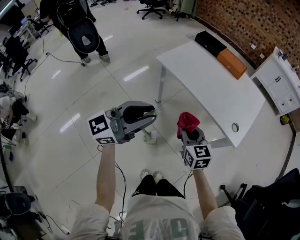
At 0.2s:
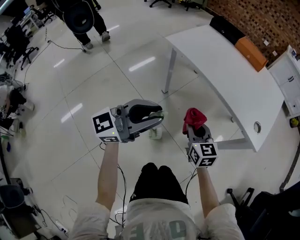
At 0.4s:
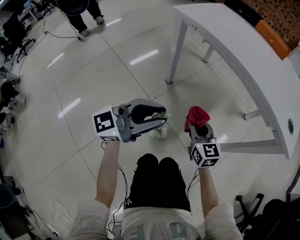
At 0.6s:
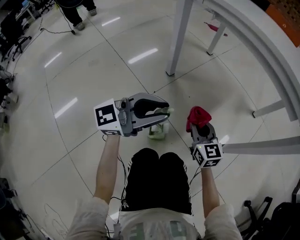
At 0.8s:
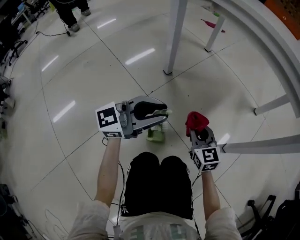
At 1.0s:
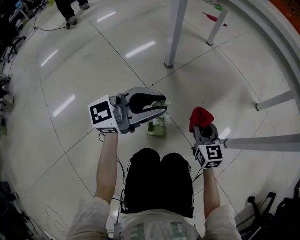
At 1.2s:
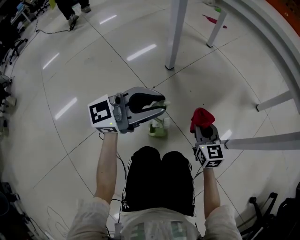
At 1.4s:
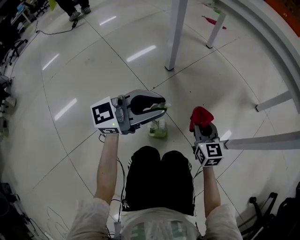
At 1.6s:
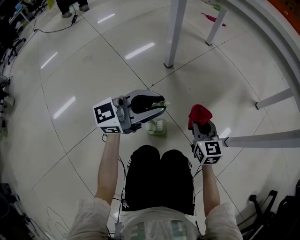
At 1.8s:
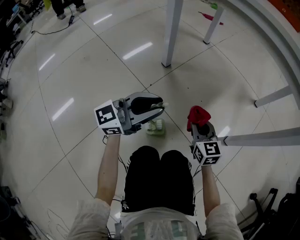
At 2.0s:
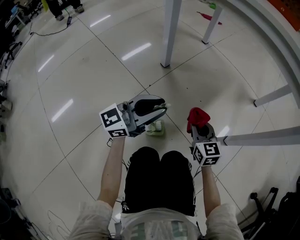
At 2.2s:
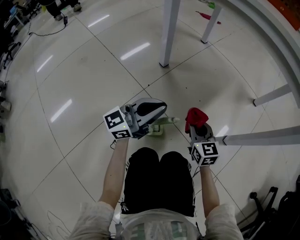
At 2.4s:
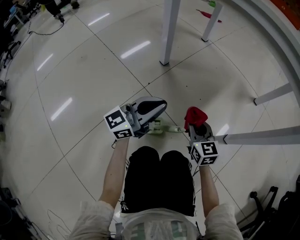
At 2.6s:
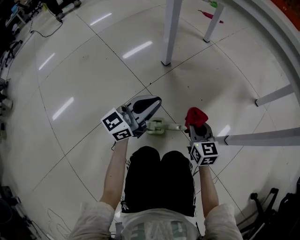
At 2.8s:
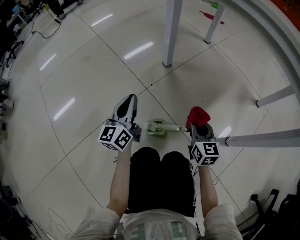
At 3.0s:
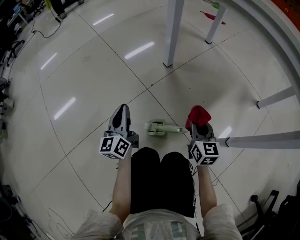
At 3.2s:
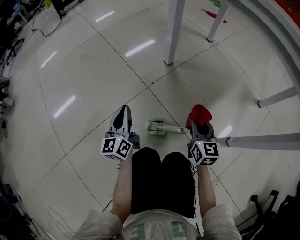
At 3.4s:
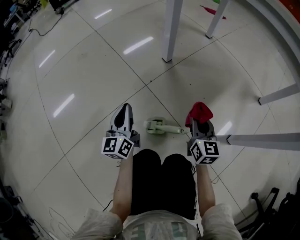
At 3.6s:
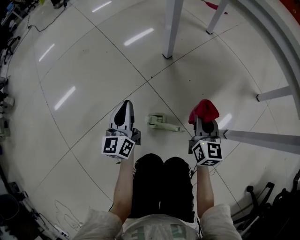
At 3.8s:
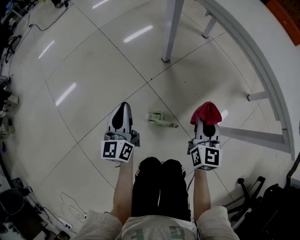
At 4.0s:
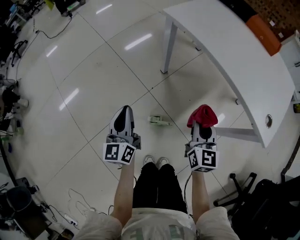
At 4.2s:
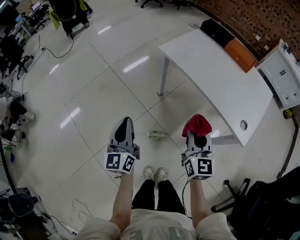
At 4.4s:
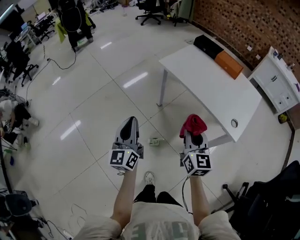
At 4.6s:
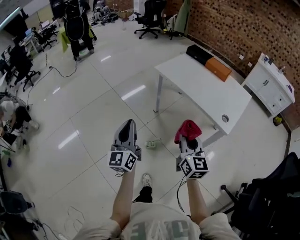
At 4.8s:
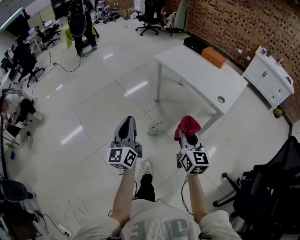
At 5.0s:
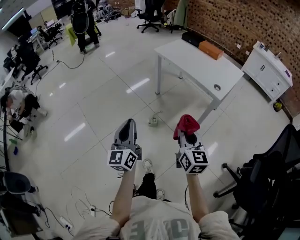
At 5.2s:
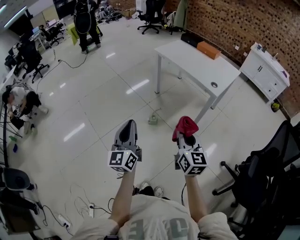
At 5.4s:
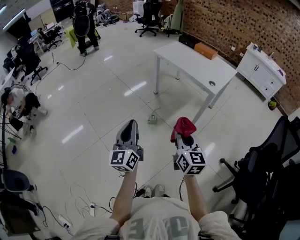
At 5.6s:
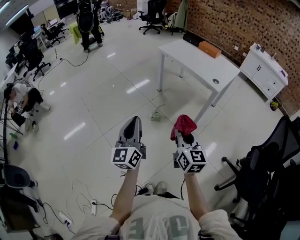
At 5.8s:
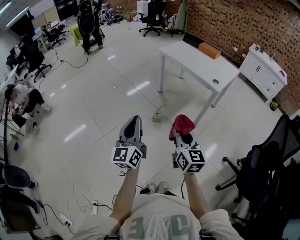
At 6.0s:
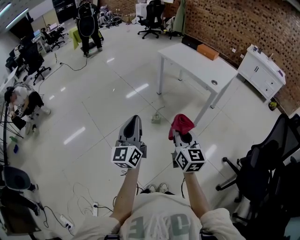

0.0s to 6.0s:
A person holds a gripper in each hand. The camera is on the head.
0.0s to 1.6s: The two grippers go some 60 cm downward.
1.6s to 3.0s: The left gripper shifts by about 20 cm, and swivels about 70 degrees.
3.0s to 4.4s: The grippers both shift upward by about 70 cm.
4.4s to 6.0s: The two grippers travel together, backward, roughly 50 cm.

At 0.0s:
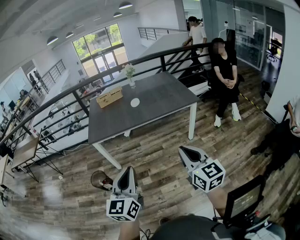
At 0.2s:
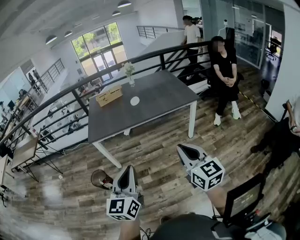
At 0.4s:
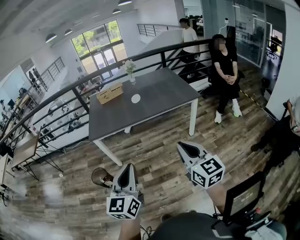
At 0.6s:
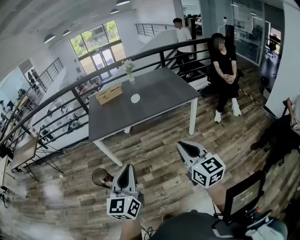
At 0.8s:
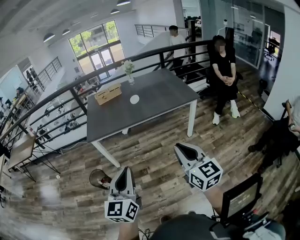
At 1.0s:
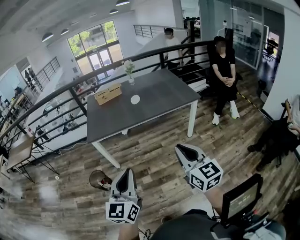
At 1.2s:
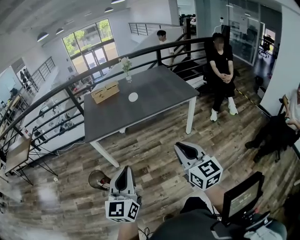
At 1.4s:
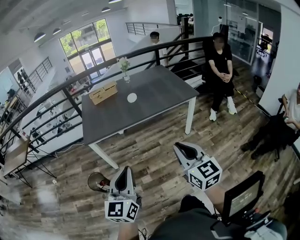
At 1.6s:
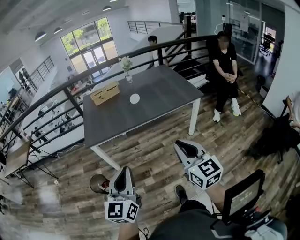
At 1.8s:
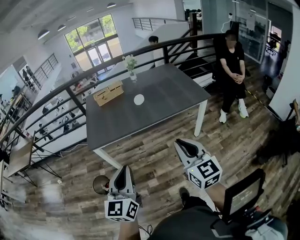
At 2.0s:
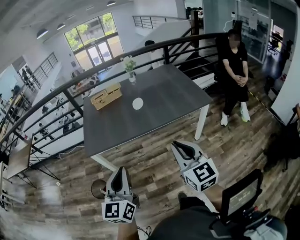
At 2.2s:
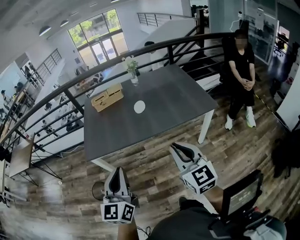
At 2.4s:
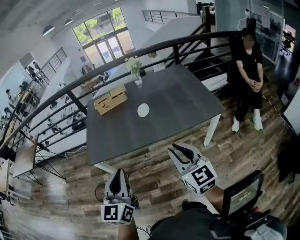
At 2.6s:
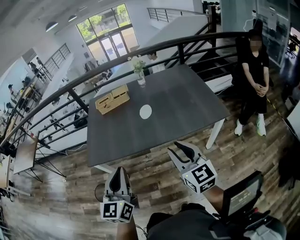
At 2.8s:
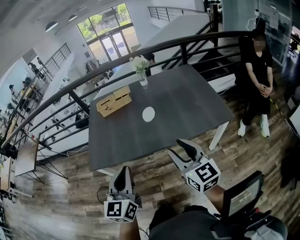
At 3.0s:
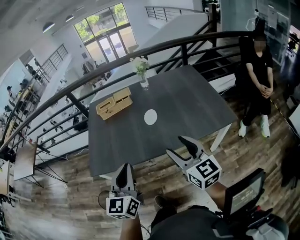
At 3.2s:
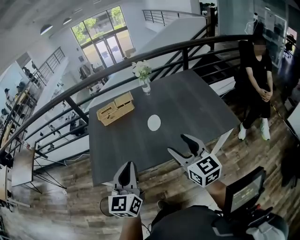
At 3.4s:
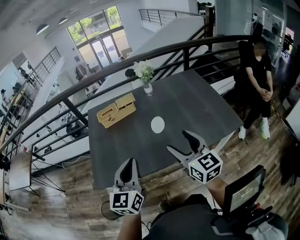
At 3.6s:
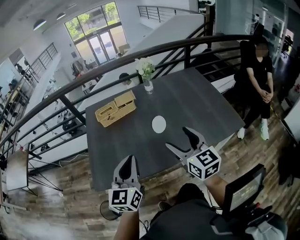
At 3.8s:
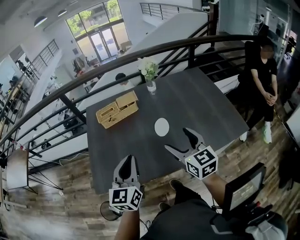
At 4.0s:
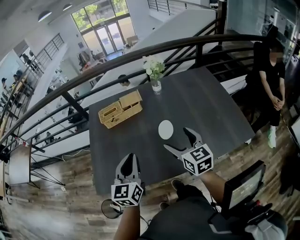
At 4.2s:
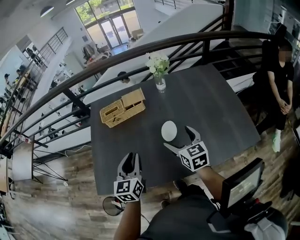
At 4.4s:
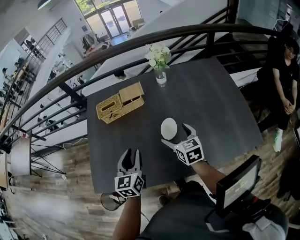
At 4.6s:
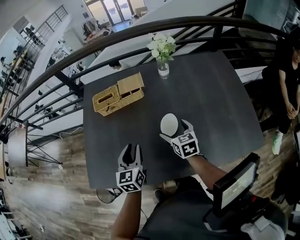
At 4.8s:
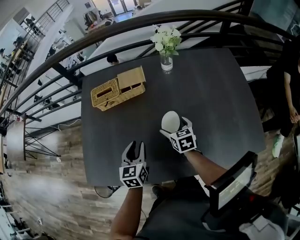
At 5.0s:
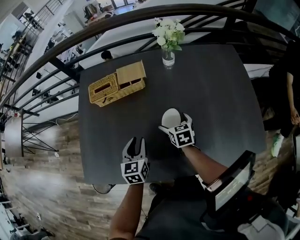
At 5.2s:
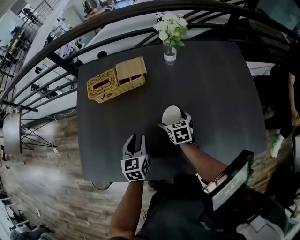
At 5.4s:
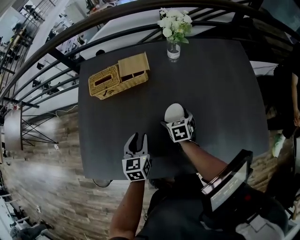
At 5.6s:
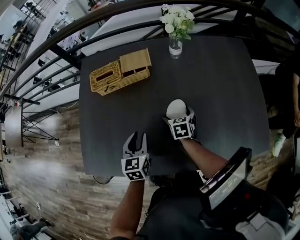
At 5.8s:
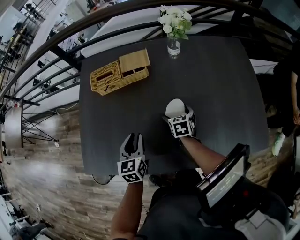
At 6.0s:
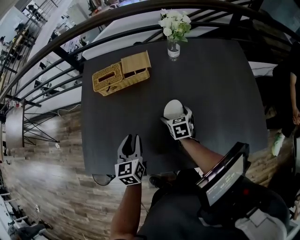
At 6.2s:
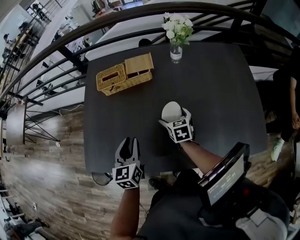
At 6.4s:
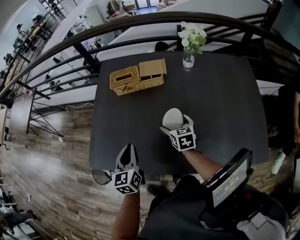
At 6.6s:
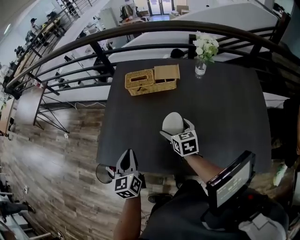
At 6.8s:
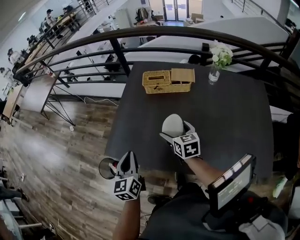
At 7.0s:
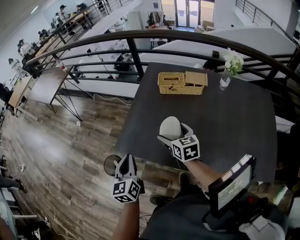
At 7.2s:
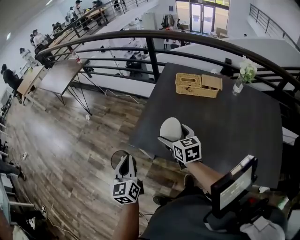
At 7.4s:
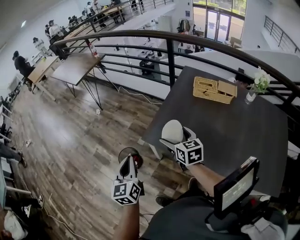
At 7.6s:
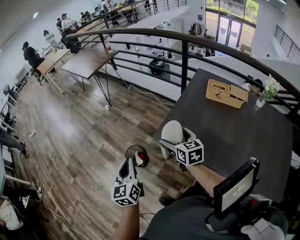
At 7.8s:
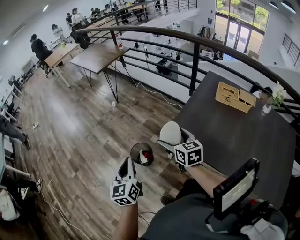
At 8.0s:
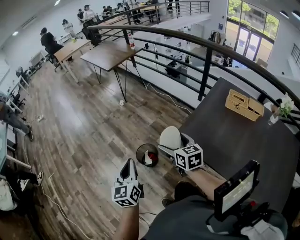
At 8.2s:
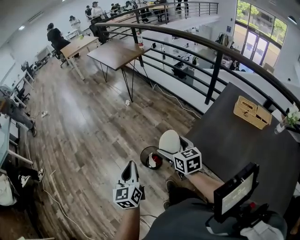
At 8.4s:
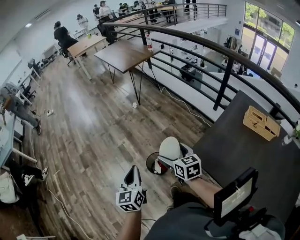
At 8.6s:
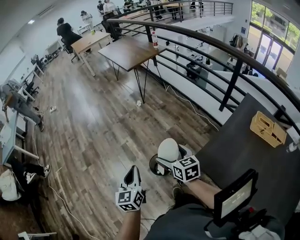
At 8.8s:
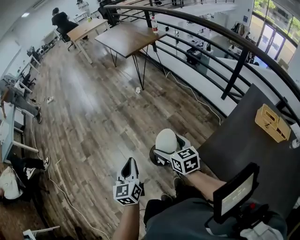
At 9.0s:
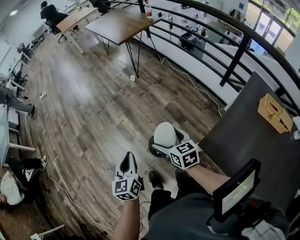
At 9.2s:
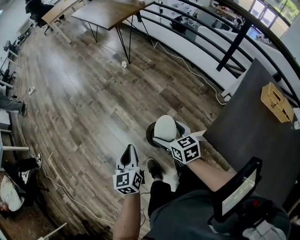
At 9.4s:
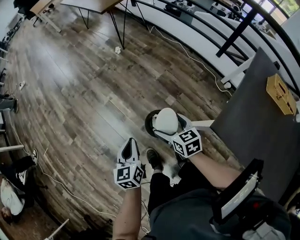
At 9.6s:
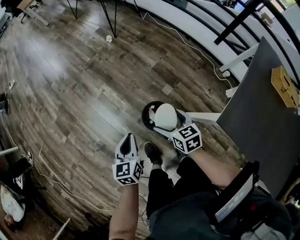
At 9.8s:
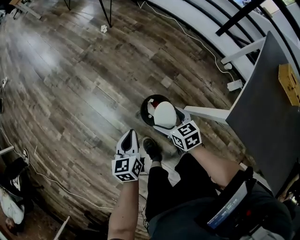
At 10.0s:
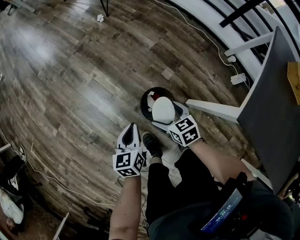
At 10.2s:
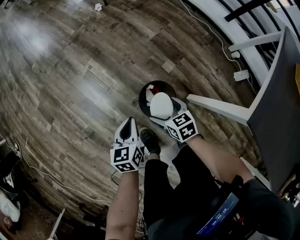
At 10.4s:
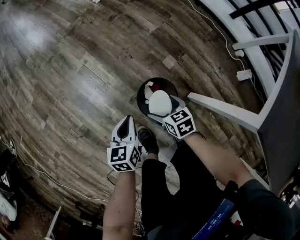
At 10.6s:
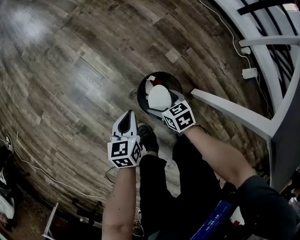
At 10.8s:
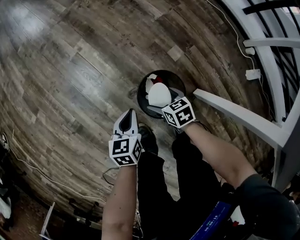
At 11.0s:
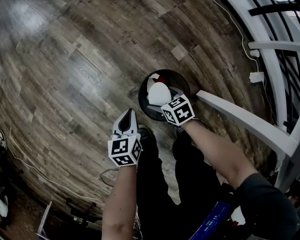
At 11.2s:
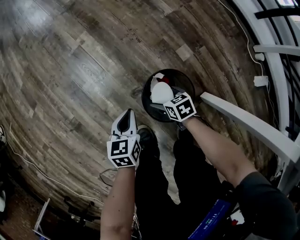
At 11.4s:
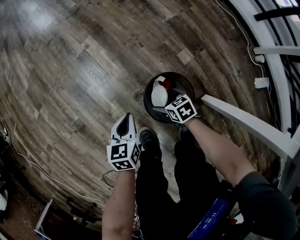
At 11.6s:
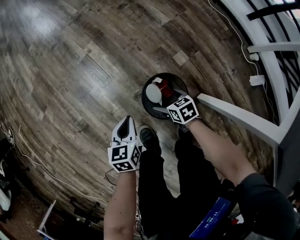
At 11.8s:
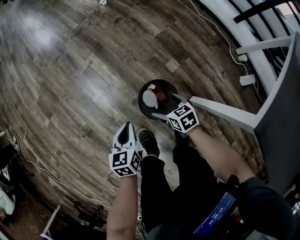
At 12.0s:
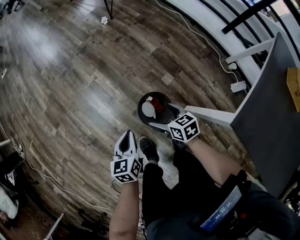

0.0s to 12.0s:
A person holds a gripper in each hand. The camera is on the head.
0.0s to 1.6s: The two grippers go approximately 15 cm forward and to the left.
1.6s to 3.0s: Both grippers move forward, some 35 cm. The right gripper opens.
3.0s to 4.4s: Both grippers travel together forward and downward, about 35 cm. The left gripper opens its fingers. Meanwhile the right gripper swivels about 30 degrees, and opens up.
4.4s to 6.0s: The right gripper travels downward and forward by approximately 15 cm, while the left gripper moves downward, about 10 cm.
6.0s to 7.6s: The pair of grippers is taken approximately 50 cm. The right gripper changes its angle by some 50 degrees. The left gripper changes its angle by roughly 50 degrees, and closes up.
7.6s to 9.0s: The left gripper is displaced forward, to the left and downward by about 25 cm. The right gripper moves to the left, forward and downward, about 35 cm, and changes its angle by about 30 degrees.
9.0s to 10.4s: The grippers both shift downward by approximately 50 cm. The right gripper rotates about 20 degrees, while the left gripper swivels approximately 30 degrees.
10.4s to 12.0s: The grippers both shift upward by approximately 10 cm.

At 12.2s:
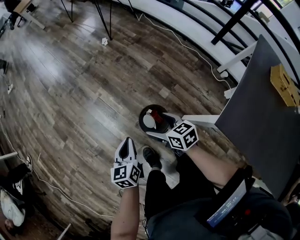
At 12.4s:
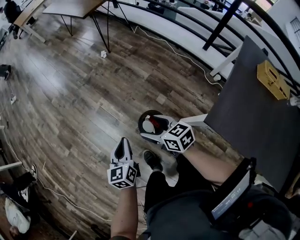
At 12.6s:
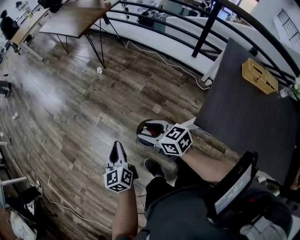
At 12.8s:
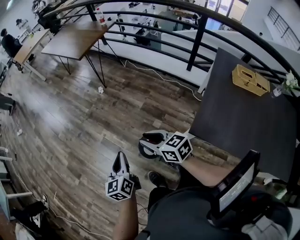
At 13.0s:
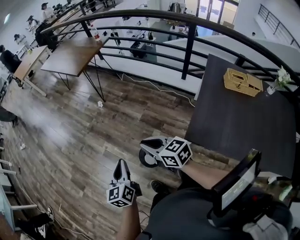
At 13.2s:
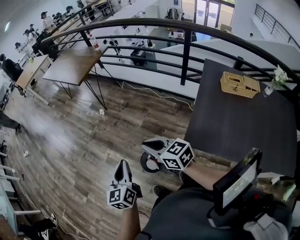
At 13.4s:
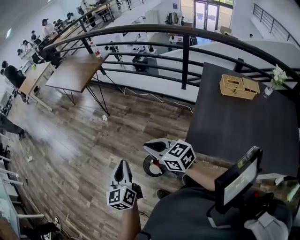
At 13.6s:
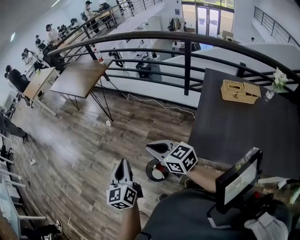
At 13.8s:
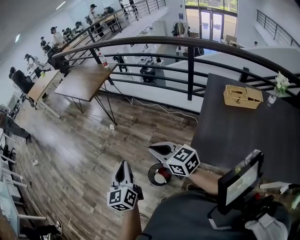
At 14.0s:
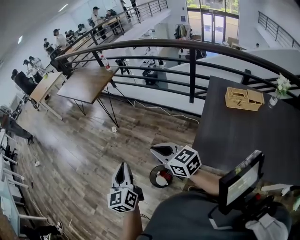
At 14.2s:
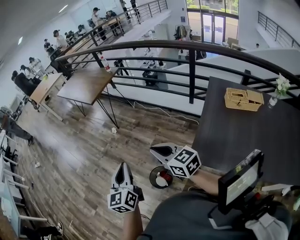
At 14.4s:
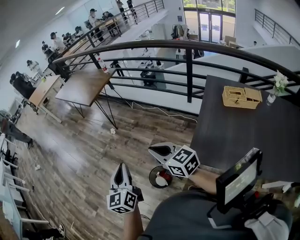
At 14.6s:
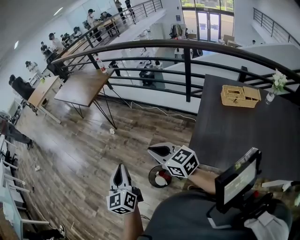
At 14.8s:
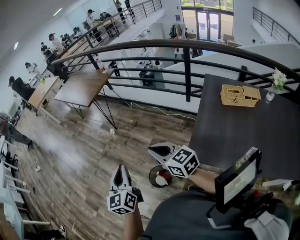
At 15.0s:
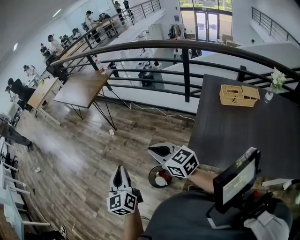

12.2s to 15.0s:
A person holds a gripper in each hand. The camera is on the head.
12.2s to 13.6s: The two grippers go about 35 cm upward. The left gripper swivels about 30 degrees, while the right gripper changes its angle by roughly 30 degrees, and closes.
13.6s to 15.0s: The grippers make only small movements.

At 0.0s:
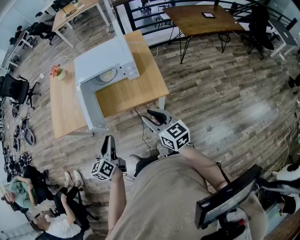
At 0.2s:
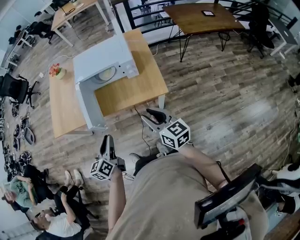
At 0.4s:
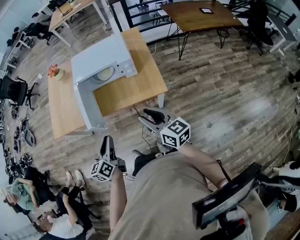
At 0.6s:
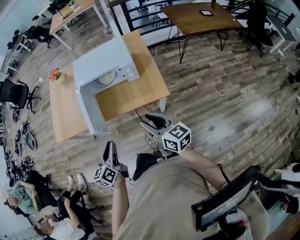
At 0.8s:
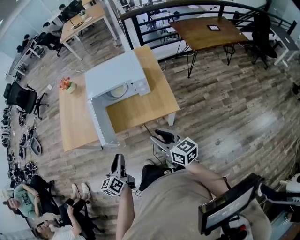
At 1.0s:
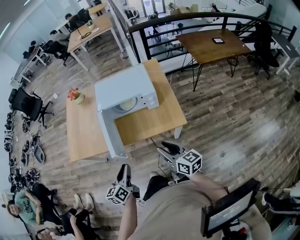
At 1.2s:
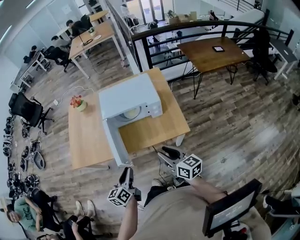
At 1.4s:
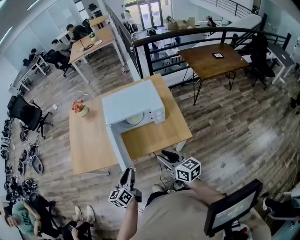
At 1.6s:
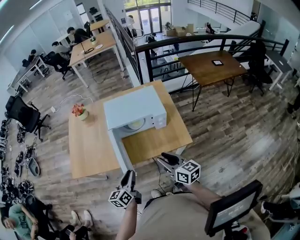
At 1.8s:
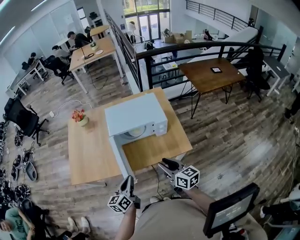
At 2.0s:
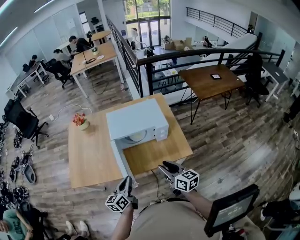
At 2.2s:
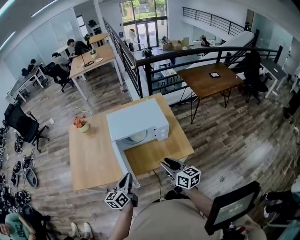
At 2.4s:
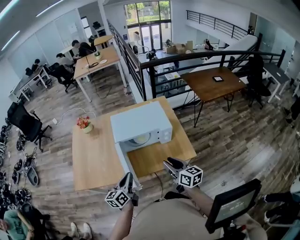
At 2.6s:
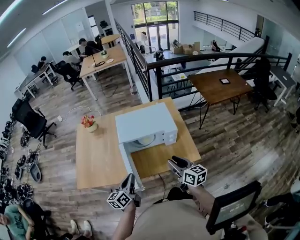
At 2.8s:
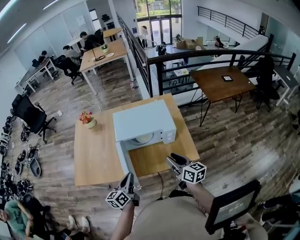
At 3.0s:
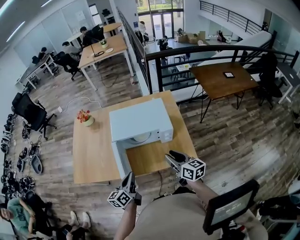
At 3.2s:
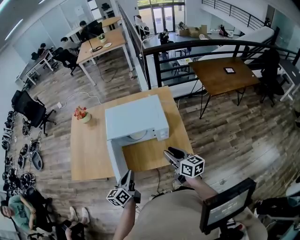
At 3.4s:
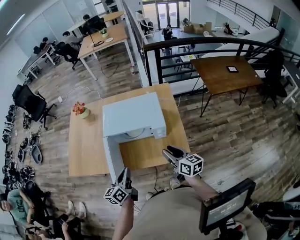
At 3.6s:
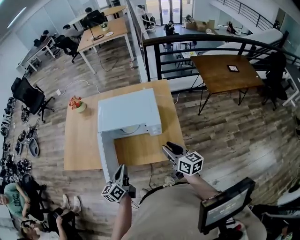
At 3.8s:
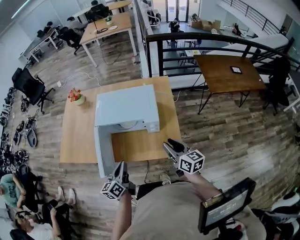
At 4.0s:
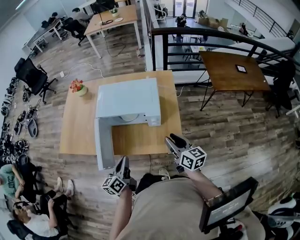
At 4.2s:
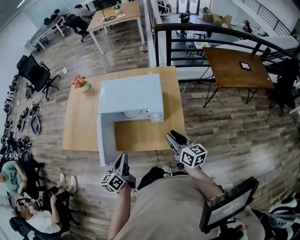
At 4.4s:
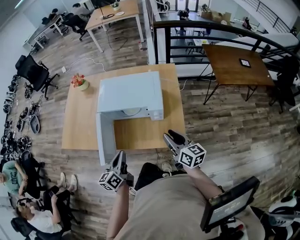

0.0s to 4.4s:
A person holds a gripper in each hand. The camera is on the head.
0.0s to 1.4s: The right gripper heads to the left and forward, covering approximately 15 cm, while the left gripper travels forward and to the left by roughly 10 cm.
1.4s to 3.0s: Both grippers travel together forward, about 10 cm. The left gripper closes.
3.0s to 4.4s: Both grippers move to the right, about 10 cm.
